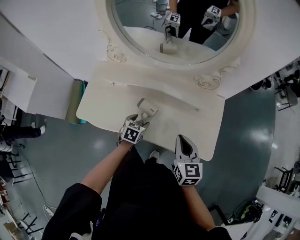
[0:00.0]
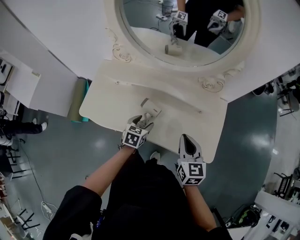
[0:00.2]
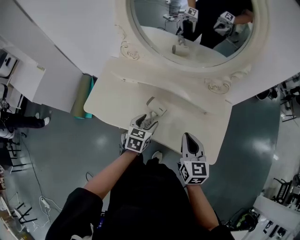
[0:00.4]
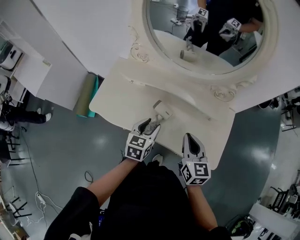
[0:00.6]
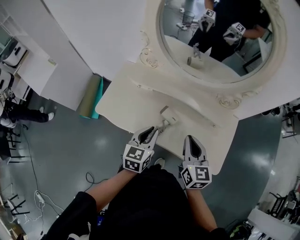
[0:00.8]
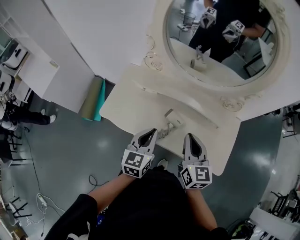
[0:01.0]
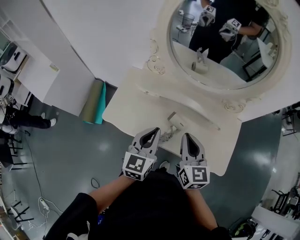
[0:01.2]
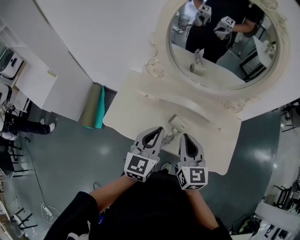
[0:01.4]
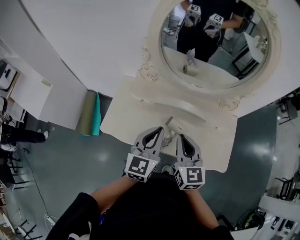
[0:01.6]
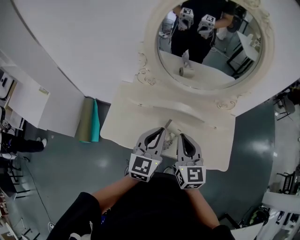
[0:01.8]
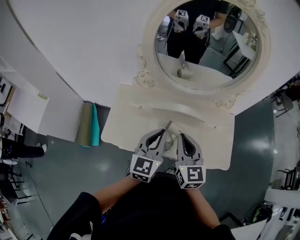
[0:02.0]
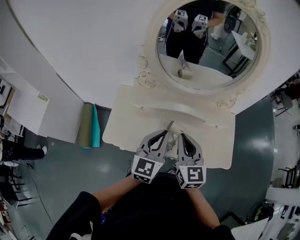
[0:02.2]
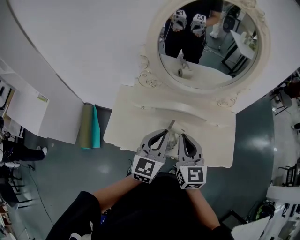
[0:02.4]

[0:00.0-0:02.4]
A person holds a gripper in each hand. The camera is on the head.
0:00.0 to 0:01.2: The right gripper shifts roughly 20 cm to the left and upward; the left gripper heads upward, covering approximately 25 cm, angles its fingers upward, by approximately 40 degrees, and closes its fingers.
0:01.2 to 0:02.4: The right gripper goes roughly 5 cm to the left.

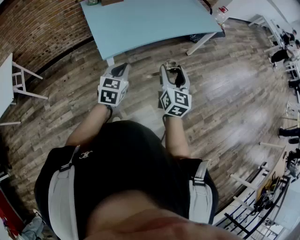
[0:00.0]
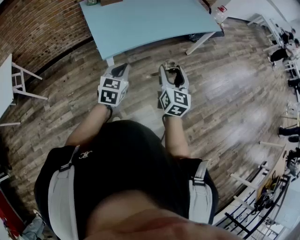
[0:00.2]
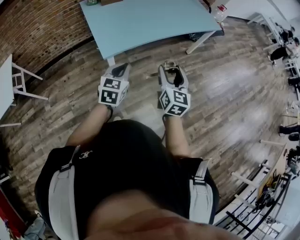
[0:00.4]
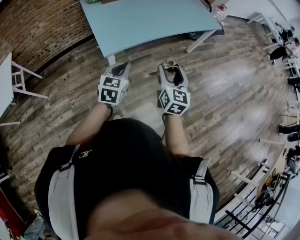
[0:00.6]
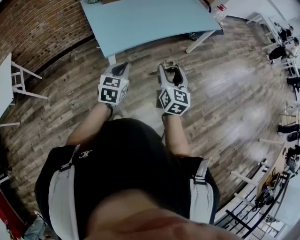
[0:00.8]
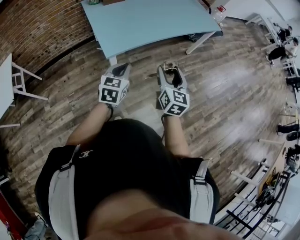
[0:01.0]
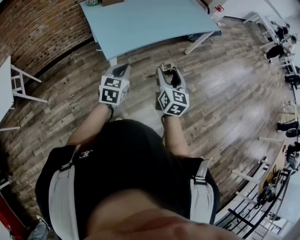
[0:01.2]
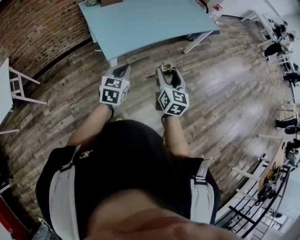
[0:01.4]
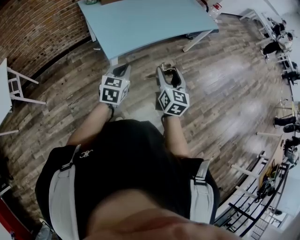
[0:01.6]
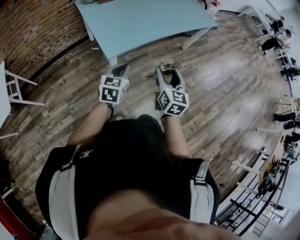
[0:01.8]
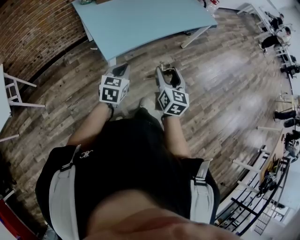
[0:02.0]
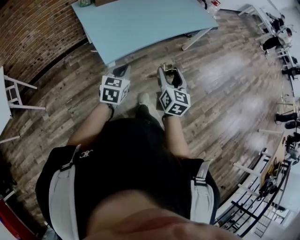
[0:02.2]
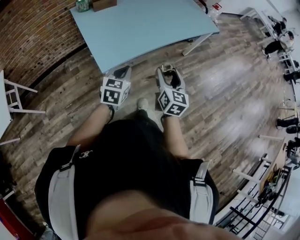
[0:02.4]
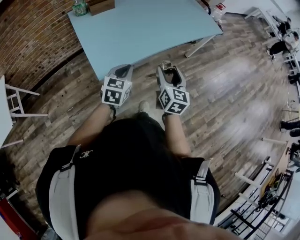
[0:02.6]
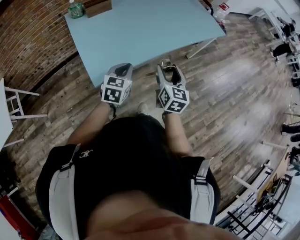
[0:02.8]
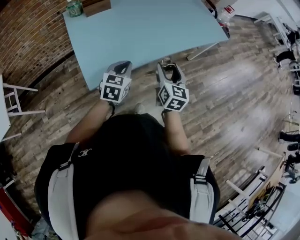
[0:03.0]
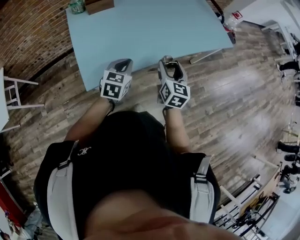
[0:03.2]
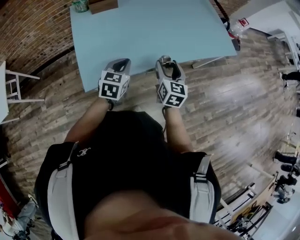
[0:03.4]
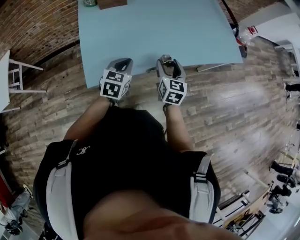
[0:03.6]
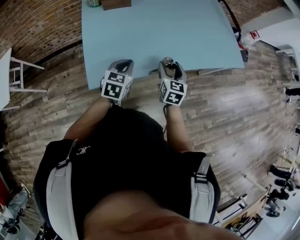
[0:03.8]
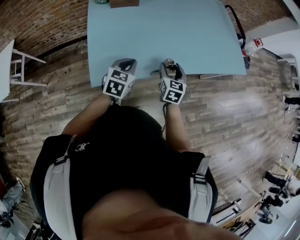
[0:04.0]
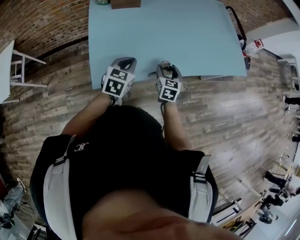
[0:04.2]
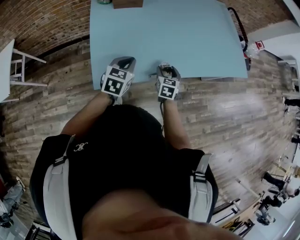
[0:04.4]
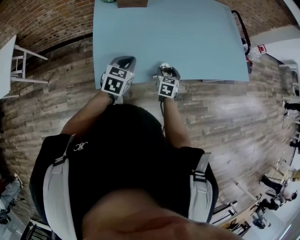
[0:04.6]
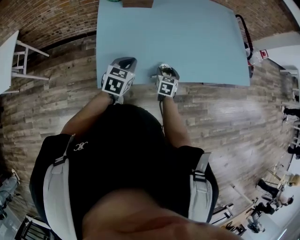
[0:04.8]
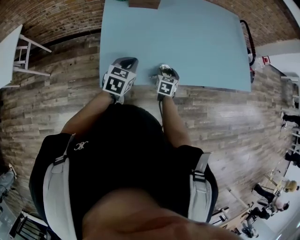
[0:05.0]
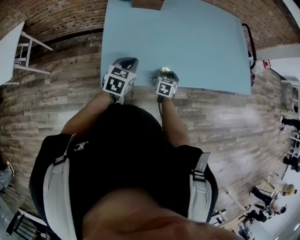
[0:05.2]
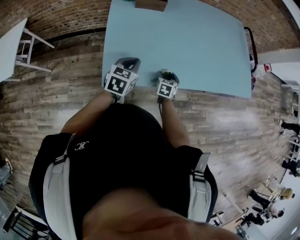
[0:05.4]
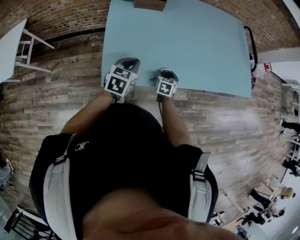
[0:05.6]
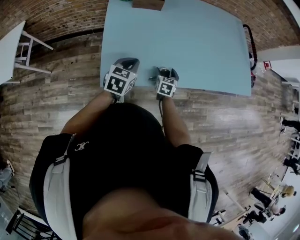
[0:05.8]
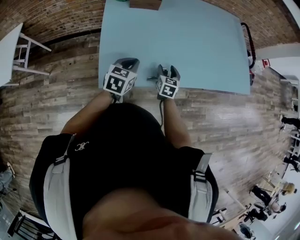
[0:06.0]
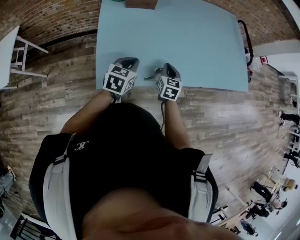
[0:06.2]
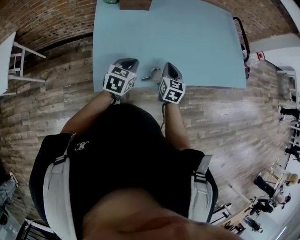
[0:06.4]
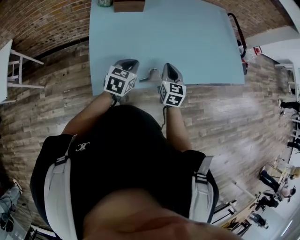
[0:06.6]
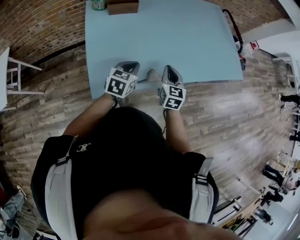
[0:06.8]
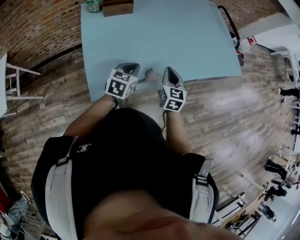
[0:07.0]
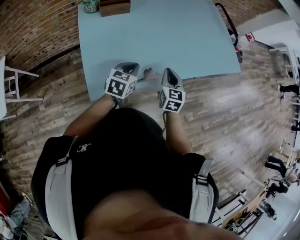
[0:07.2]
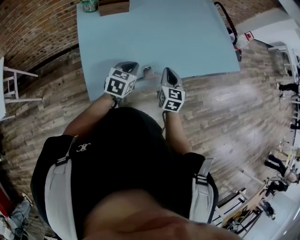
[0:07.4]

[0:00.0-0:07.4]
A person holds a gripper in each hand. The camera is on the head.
0:00.0 to 0:01.4: The right gripper shifts about 5 cm to the left.
0:01.4 to 0:03.0: The two grippers go about 25 cm forward.
0:03.0 to 0:04.4: The right gripper heads downward and forward, covering approximately 20 cm, and rotates roughly 30 degrees, while the left gripper shifts approximately 10 cm forward and to the left.
0:04.4 to 0:06.0: The right gripper moves to the left, approximately 5 cm, and travels downward and back again, about 10 cm each way.
0:06.0 to 0:07.4: The left gripper goes roughly 5 cm to the right. Meanwhile the right gripper shifts approximately 15 cm upward and to the right, and closes its fingers.

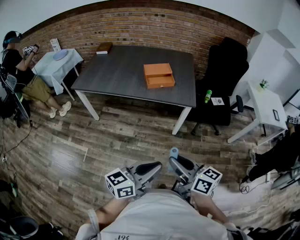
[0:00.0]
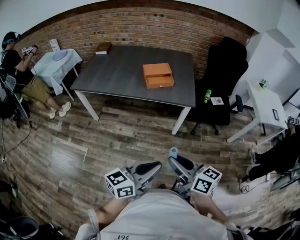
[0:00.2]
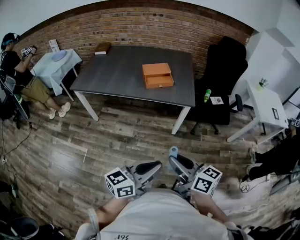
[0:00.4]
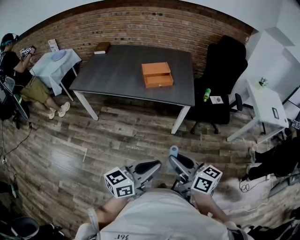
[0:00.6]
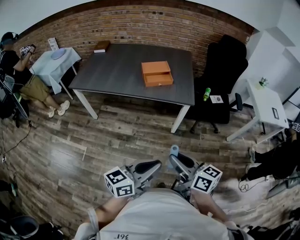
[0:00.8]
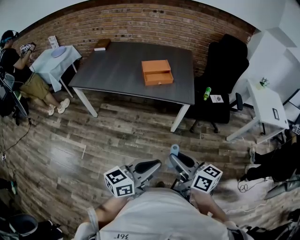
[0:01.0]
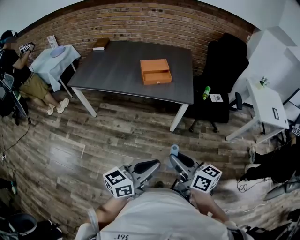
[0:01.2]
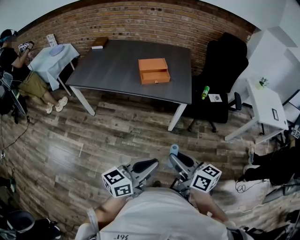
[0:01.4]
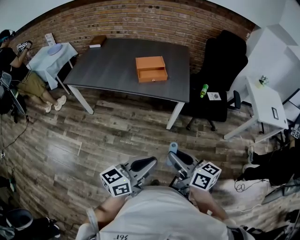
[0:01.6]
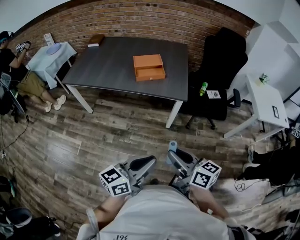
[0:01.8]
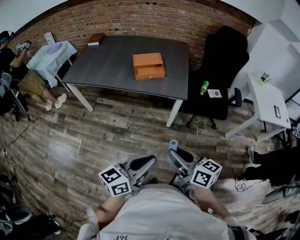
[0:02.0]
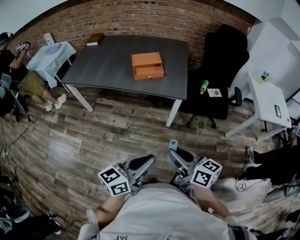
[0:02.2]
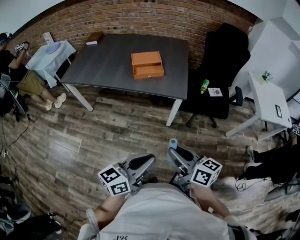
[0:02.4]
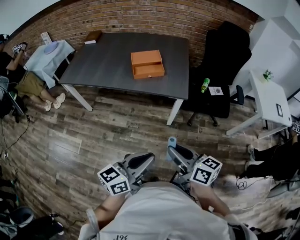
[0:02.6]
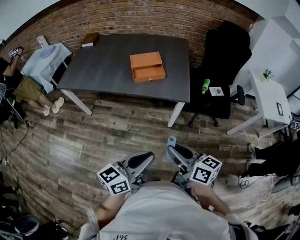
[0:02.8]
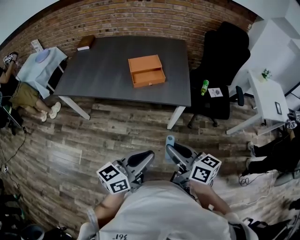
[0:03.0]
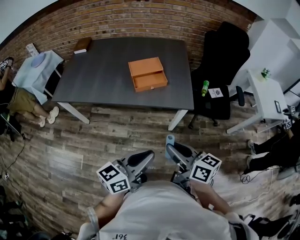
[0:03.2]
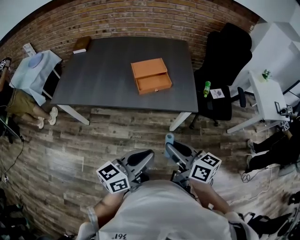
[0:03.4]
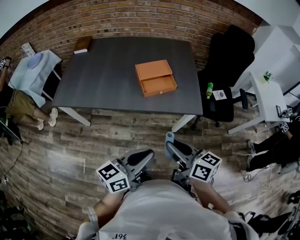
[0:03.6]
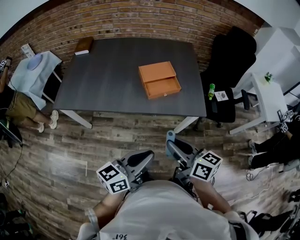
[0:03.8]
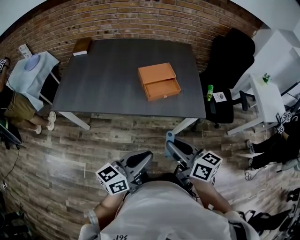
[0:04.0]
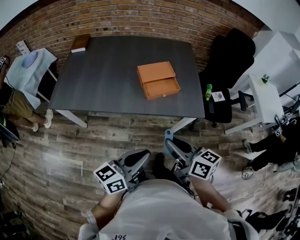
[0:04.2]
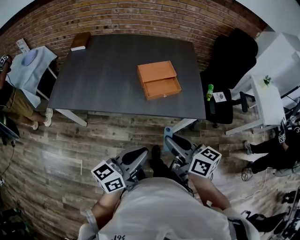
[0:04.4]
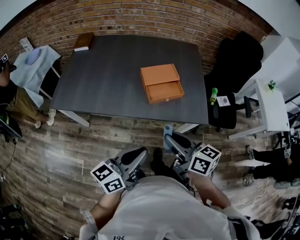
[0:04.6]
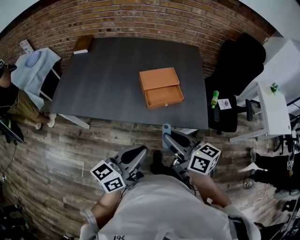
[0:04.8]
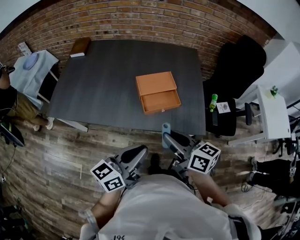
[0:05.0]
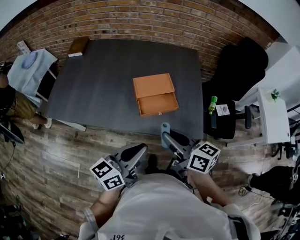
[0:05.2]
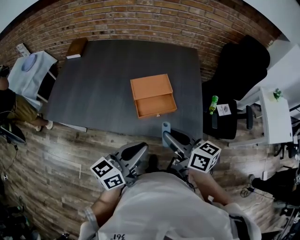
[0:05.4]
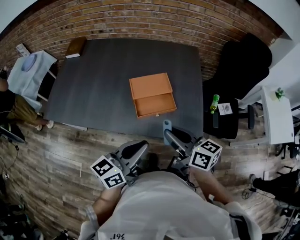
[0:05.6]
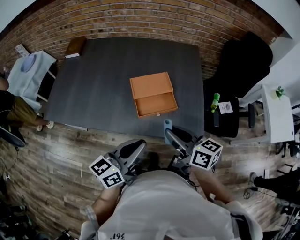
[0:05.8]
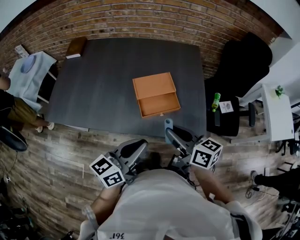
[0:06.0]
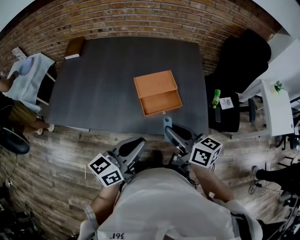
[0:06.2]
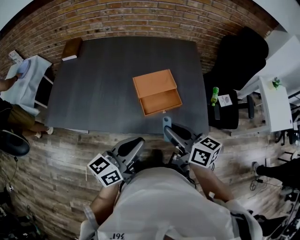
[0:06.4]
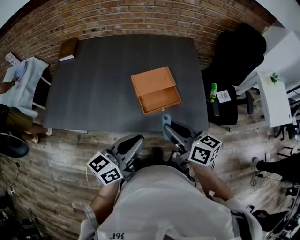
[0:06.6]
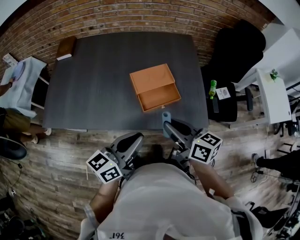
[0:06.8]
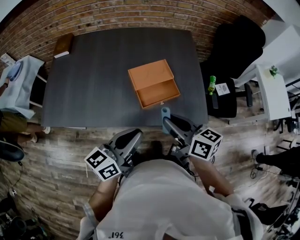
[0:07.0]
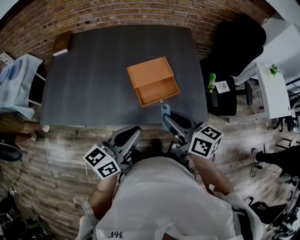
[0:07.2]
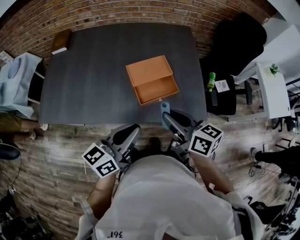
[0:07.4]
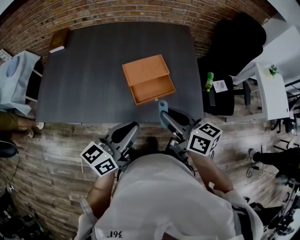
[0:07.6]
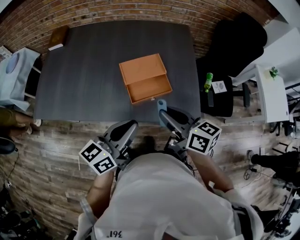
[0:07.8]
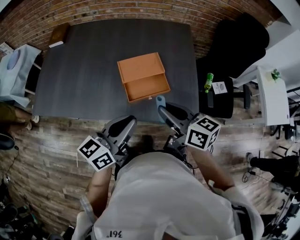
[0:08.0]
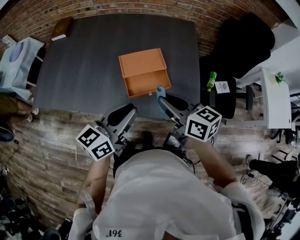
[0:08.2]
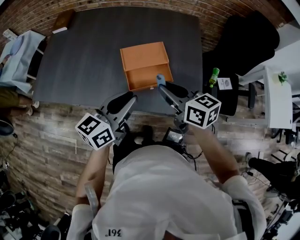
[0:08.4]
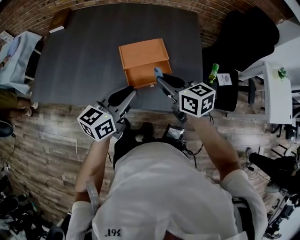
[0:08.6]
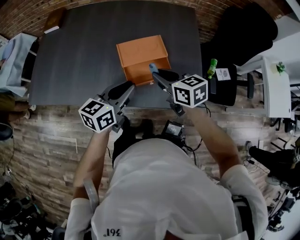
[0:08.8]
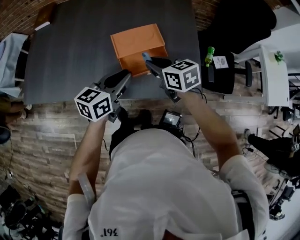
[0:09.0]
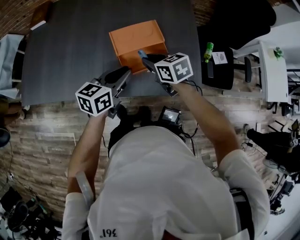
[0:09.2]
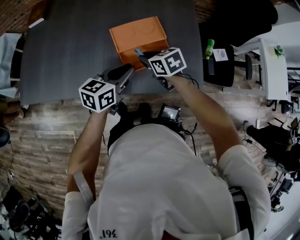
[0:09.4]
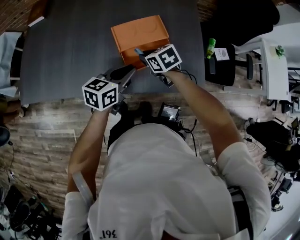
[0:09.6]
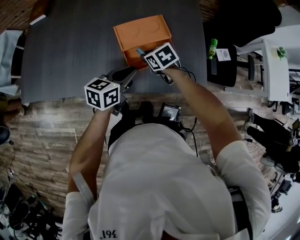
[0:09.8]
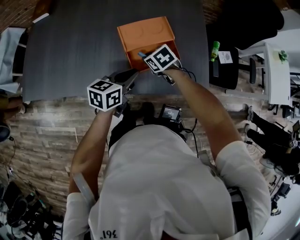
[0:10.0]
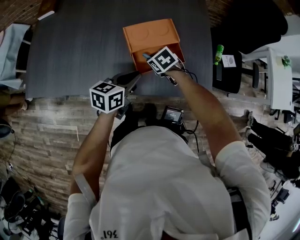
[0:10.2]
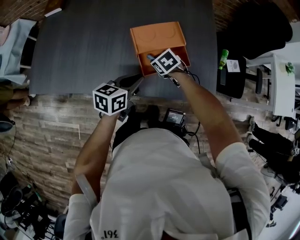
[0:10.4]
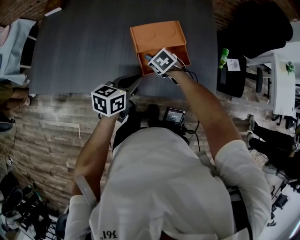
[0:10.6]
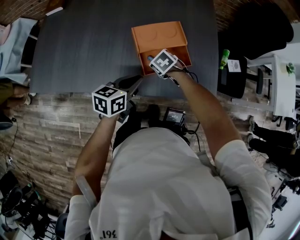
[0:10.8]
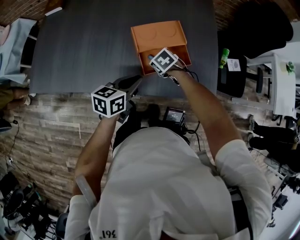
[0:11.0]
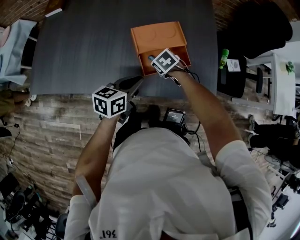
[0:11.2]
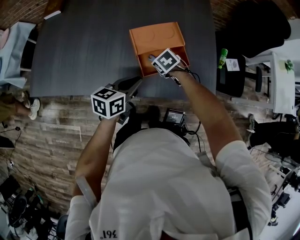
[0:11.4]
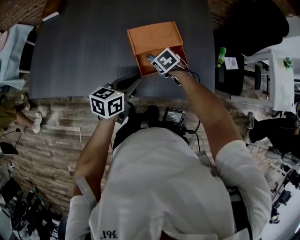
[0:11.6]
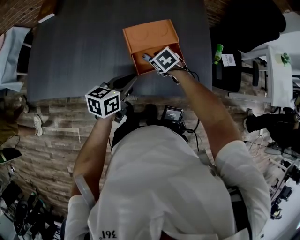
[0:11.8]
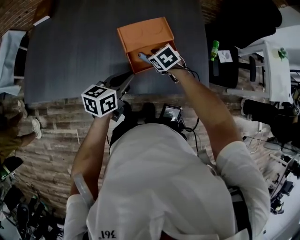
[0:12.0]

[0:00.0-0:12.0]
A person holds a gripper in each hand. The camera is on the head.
0:00.0 to 0:01.6: The right gripper heads to the right, covering roughly 5 cm, while the left gripper shifts by roughly 5 cm.
0:01.6 to 0:03.0: The grippers both shift forward by some 15 cm.
0:03.0 to 0:04.4: Both grippers travel together to the left and forward, about 20 cm.
0:04.4 to 0:06.0: The two grippers go some 15 cm forward.
0:06.0 to 0:07.6: The grippers make only small movements.
0:07.6 to 0:09.0: Both grippers move forward and downward, approximately 15 cm. The right gripper changes its angle by some 30 degrees.
0:09.0 to 0:10.4: The left gripper shifts approximately 10 cm downward; the right gripper goes some 15 cm downward, and angles its fingers downward, by some 30 degrees.
0:10.4 to 0:12.0: The grippers make only small movements.

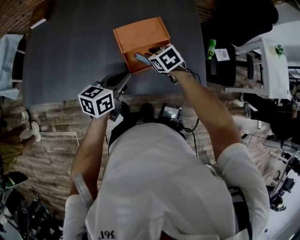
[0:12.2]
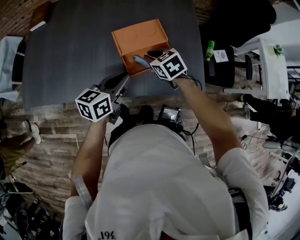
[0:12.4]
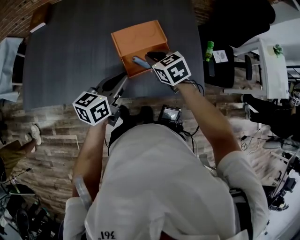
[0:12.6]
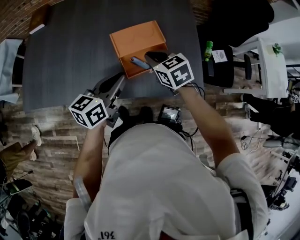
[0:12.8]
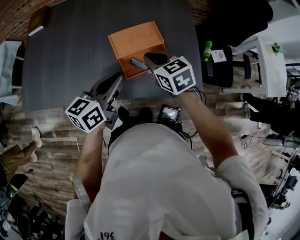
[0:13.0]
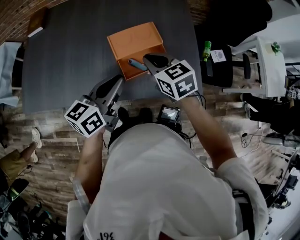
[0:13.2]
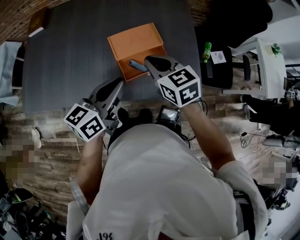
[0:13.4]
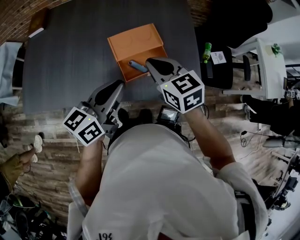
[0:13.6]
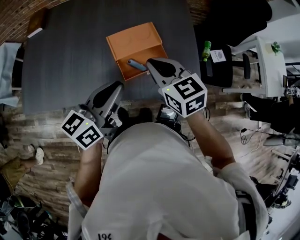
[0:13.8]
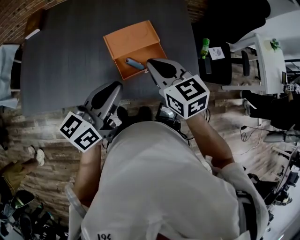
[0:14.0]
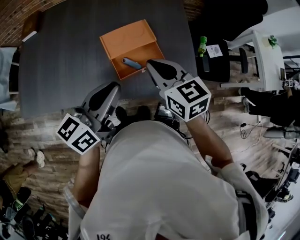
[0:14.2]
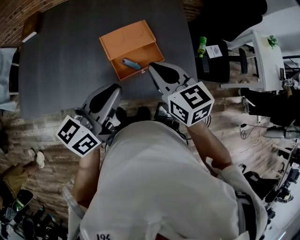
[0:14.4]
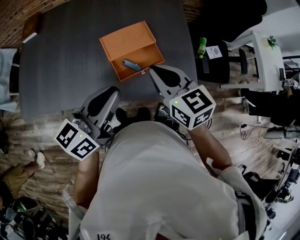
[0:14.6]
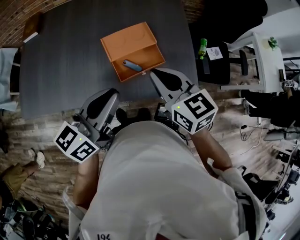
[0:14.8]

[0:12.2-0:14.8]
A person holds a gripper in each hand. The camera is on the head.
0:12.2 to 0:13.4: The right gripper heads upward, covering roughly 15 cm, and swivels approximately 30 degrees, while the left gripper goes about 10 cm upward.
0:13.4 to 0:14.8: The left gripper moves upward, approximately 5 cm, while the right gripper travels upward and backward by roughly 10 cm.
